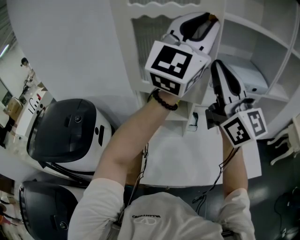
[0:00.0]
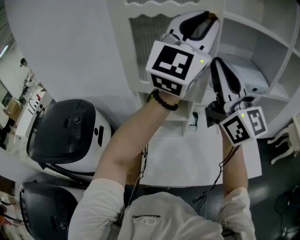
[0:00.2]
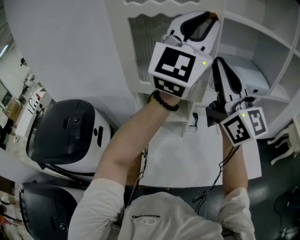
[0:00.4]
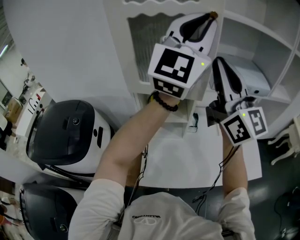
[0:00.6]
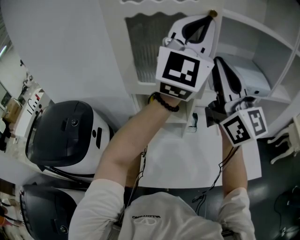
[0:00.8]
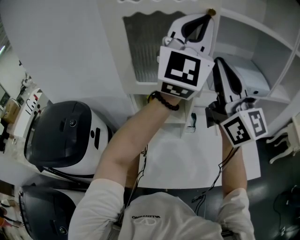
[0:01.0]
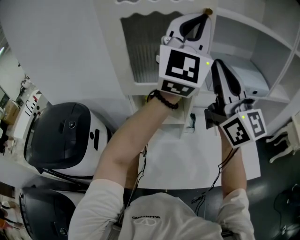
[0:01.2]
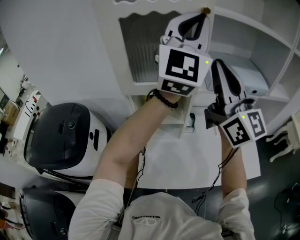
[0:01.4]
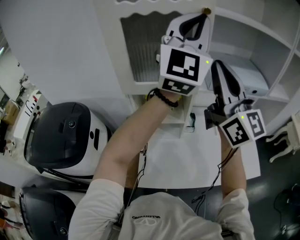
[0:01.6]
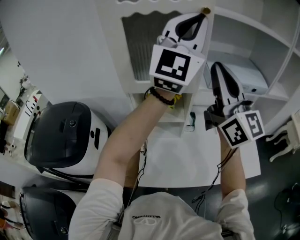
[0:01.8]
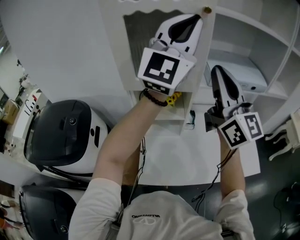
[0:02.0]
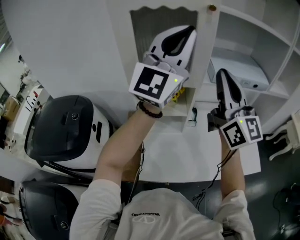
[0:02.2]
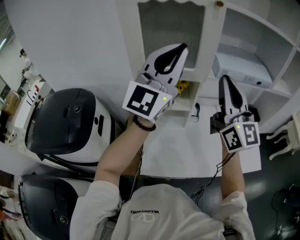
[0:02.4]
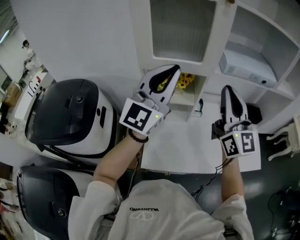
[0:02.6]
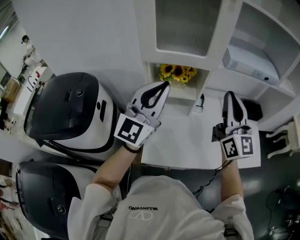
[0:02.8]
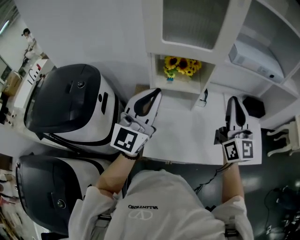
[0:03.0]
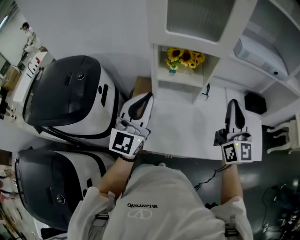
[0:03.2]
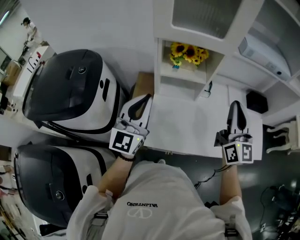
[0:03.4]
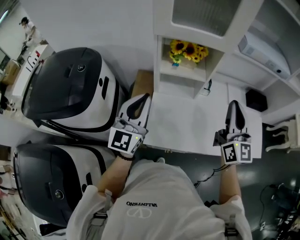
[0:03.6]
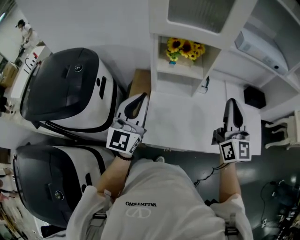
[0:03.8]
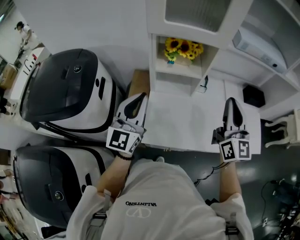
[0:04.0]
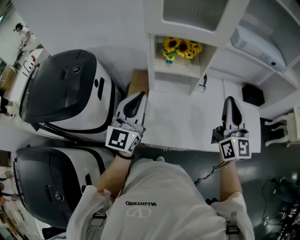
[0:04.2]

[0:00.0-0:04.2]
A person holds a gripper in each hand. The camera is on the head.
0.0 to 1.4 s: The left gripper travels forward by some 5 cm.
1.4 to 2.8 s: The right gripper moves downward, about 15 cm; the left gripper goes about 30 cm downward, backward and to the left, and rotates approximately 20 degrees.
2.8 to 4.2 s: The right gripper heads downward, covering some 10 cm. Meanwhile the left gripper moves downward, to the left and backward, about 15 cm.

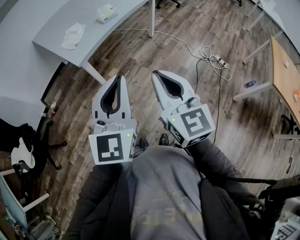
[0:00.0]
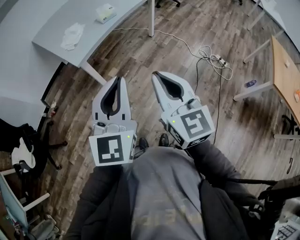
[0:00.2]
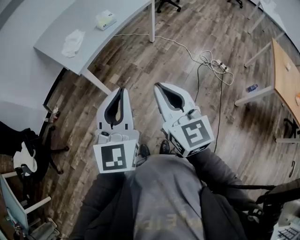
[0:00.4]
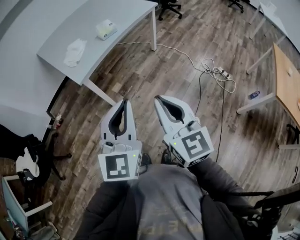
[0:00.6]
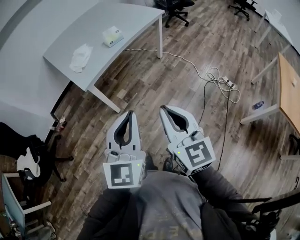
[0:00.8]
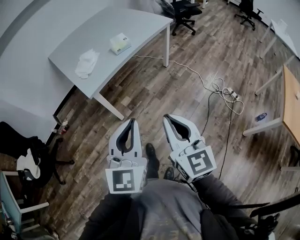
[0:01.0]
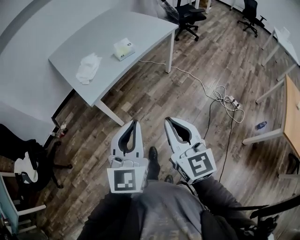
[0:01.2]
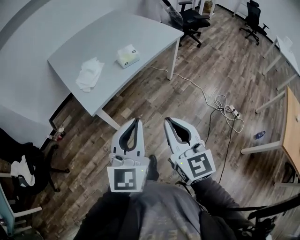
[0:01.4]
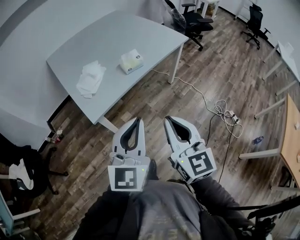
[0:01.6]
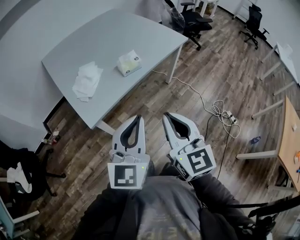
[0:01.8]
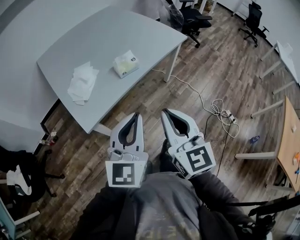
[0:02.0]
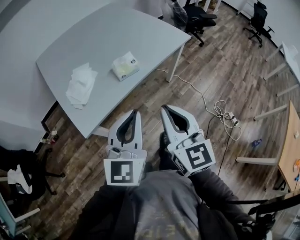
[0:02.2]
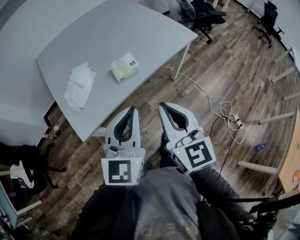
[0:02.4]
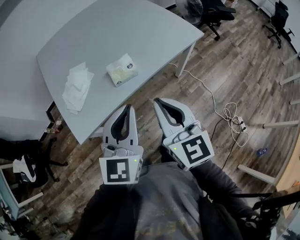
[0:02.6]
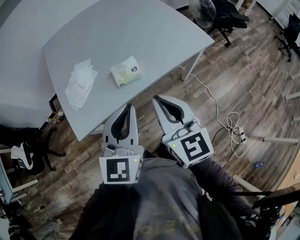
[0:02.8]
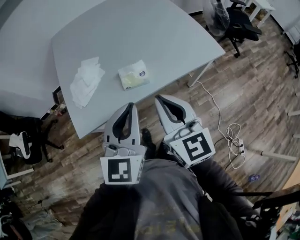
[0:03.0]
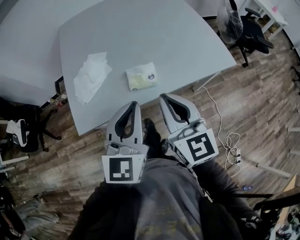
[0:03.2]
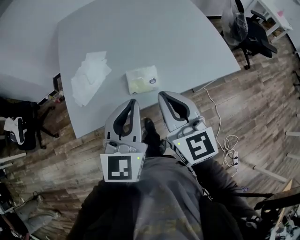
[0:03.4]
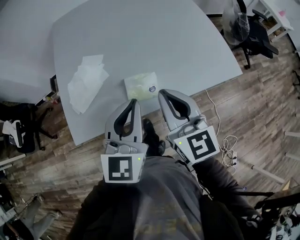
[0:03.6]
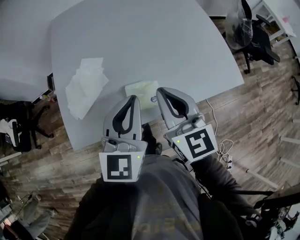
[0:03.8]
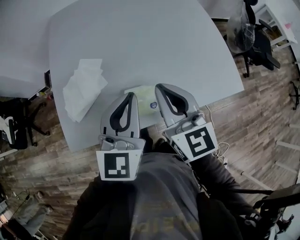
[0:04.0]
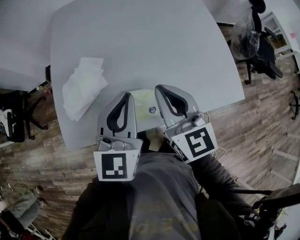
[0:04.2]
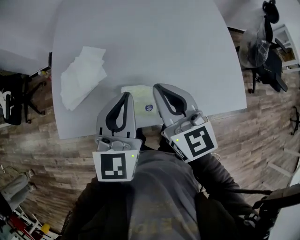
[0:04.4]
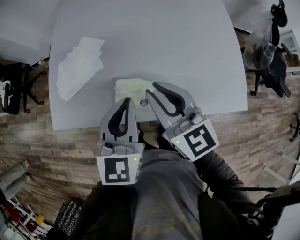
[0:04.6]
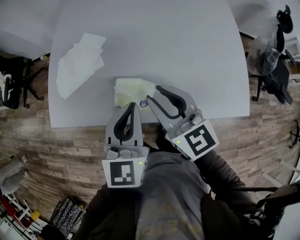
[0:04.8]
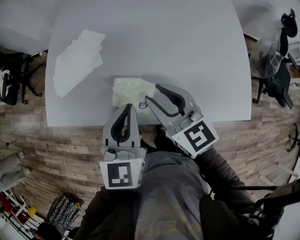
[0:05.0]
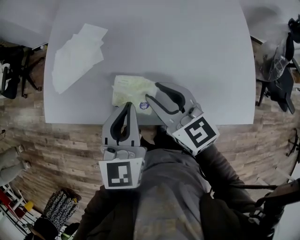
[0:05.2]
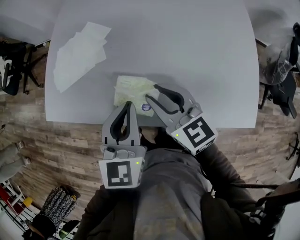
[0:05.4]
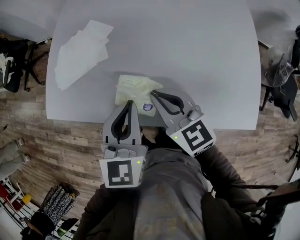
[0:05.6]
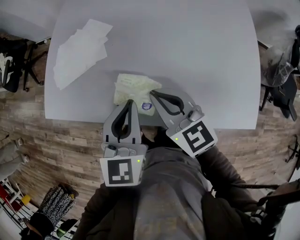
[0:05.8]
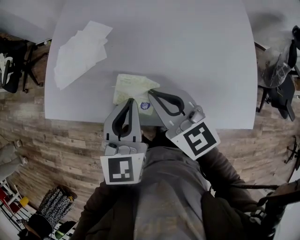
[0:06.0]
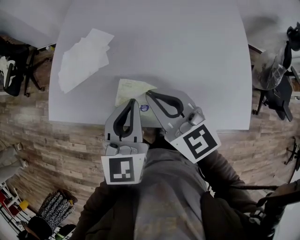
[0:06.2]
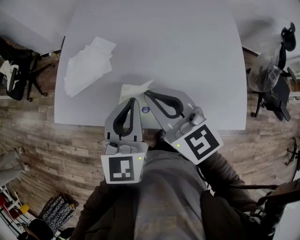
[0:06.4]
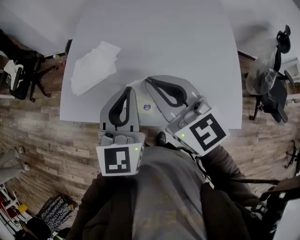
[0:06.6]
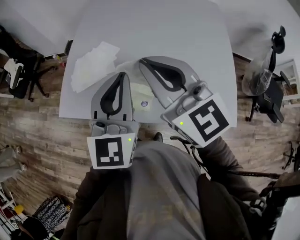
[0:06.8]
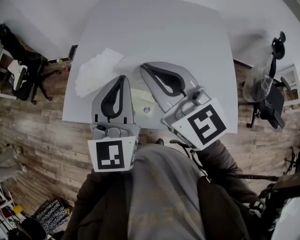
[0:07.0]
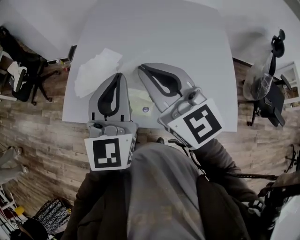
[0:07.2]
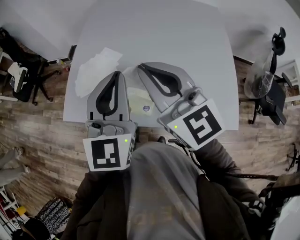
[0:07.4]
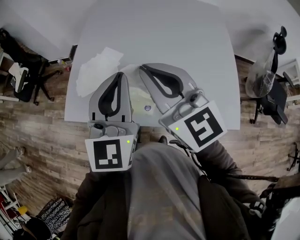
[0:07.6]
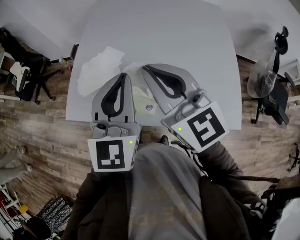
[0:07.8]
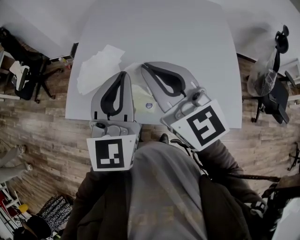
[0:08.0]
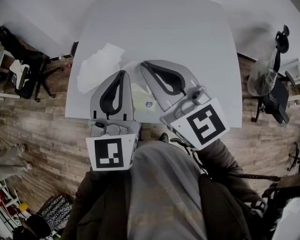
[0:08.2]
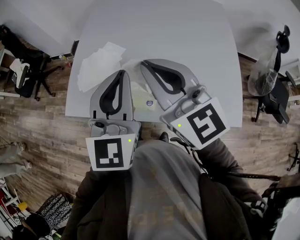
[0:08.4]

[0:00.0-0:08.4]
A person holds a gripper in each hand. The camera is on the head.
0.0 to 1.4 s: The two grippers go some 20 cm forward.
1.4 to 2.8 s: The grippers both shift forward by roughly 35 cm.
2.8 to 4.2 s: The grippers both shift forward by some 25 cm.
4.2 to 5.6 s: Both grippers travel together downward, approximately 15 cm. The right gripper swivels approximately 40 degrees, and opens and closes again; the left gripper turns by some 20 degrees.
5.6 to 7.0 s: Both grippers move upward, roughly 25 cm. The right gripper turns by approximately 20 degrees; the left gripper turns by approximately 20 degrees.
7.0 to 8.4 s: The grippers move only a little.

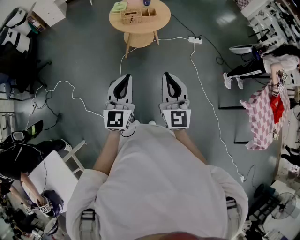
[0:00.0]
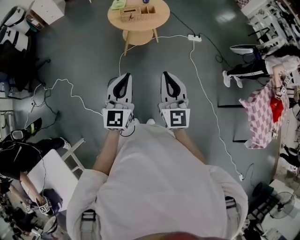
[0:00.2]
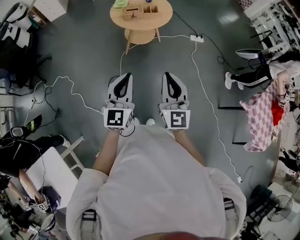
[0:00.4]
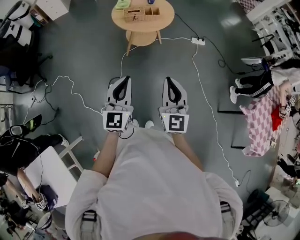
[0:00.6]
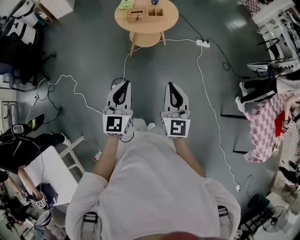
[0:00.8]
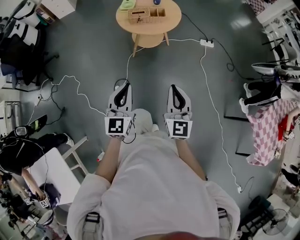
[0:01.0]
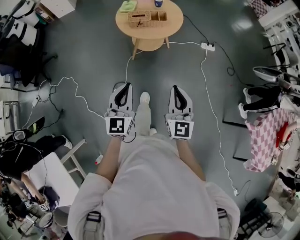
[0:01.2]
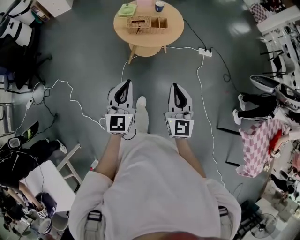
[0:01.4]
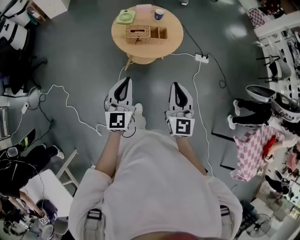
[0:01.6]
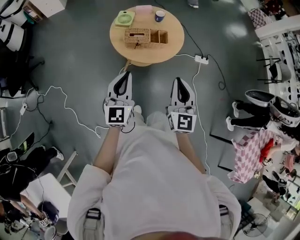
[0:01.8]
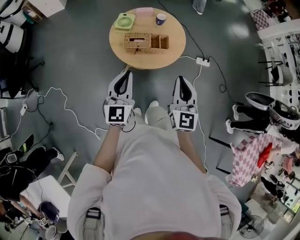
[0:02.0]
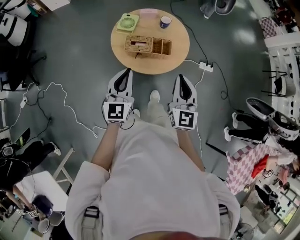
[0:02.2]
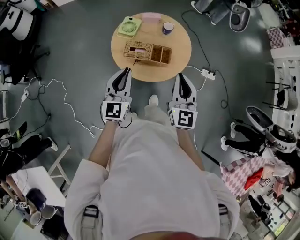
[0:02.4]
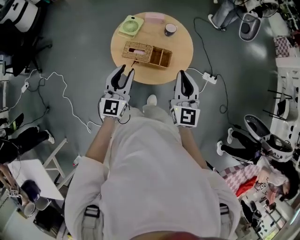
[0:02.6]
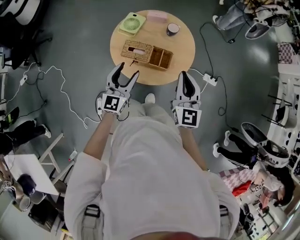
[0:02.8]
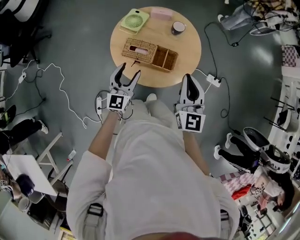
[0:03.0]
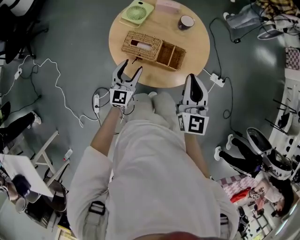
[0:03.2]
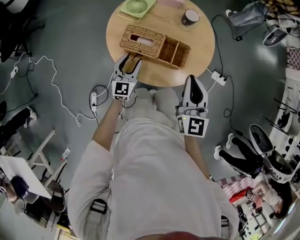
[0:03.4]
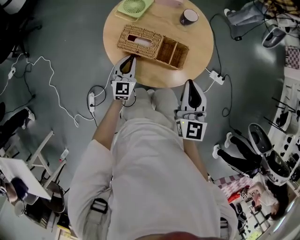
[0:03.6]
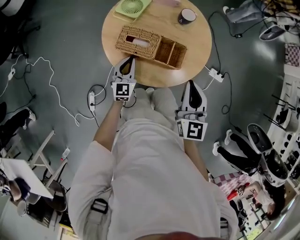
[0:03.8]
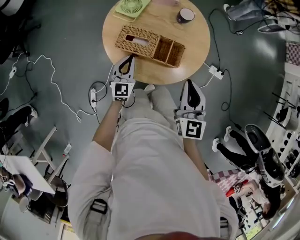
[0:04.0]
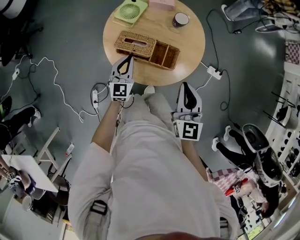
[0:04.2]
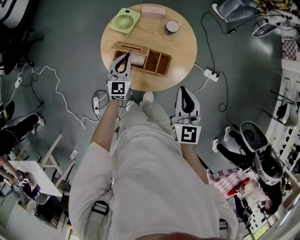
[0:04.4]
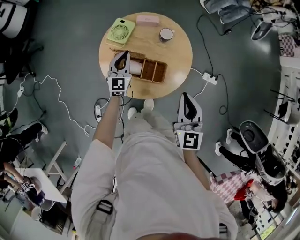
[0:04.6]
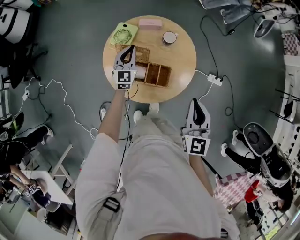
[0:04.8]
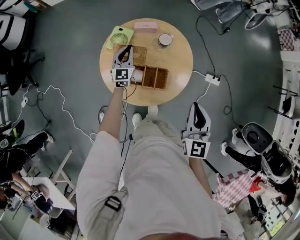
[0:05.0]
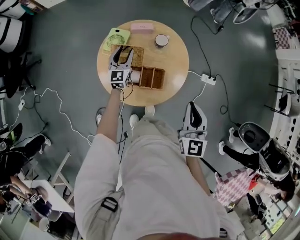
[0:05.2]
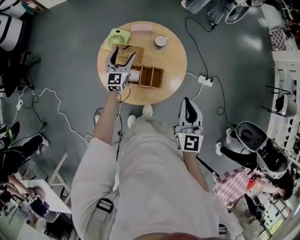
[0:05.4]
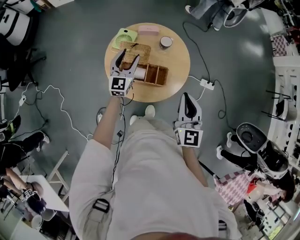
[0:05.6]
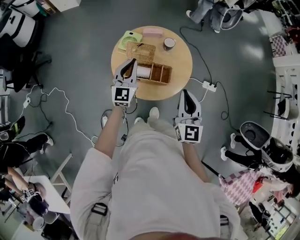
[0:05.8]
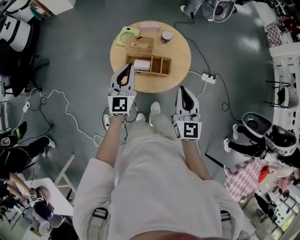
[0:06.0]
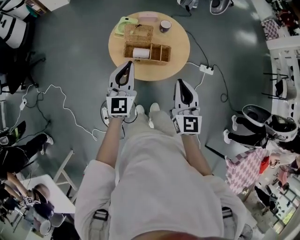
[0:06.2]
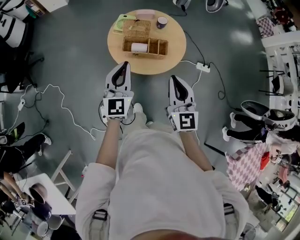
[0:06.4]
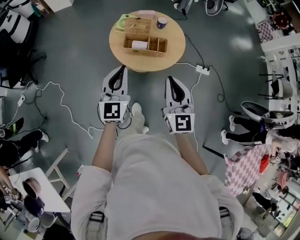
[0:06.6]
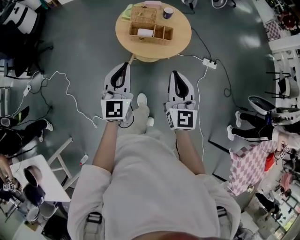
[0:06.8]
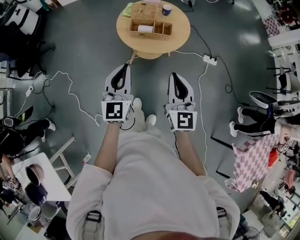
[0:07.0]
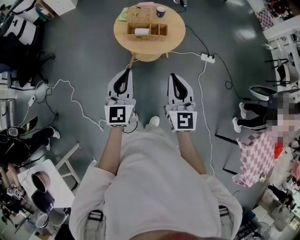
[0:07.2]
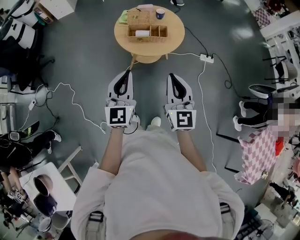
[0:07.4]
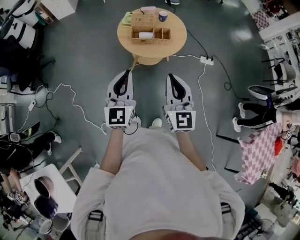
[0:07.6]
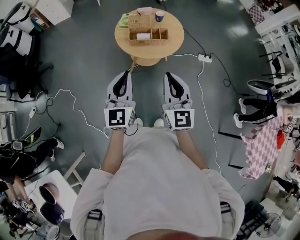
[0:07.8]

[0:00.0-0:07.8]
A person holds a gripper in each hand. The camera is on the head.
0.0 to 1.6 s: The two grippers go about 30 cm forward.
1.6 to 3.2 s: Both grippers move forward and downward, roughly 40 cm. The left gripper opens.
3.2 to 4.6 s: The right gripper travels upward by some 5 cm. Meanwhile the left gripper is displaced forward and upward by approximately 15 cm, and closes up.
4.6 to 6.2 s: The left gripper is displaced backward and upward by roughly 30 cm, and opens, then closes once more, while the right gripper travels backward, to the left and upward by roughly 20 cm.
6.2 to 7.8 s: The left gripper travels backward by roughly 30 cm, while the right gripper heads backward and to the left, covering approximately 25 cm.

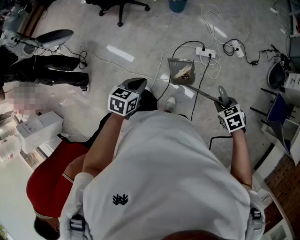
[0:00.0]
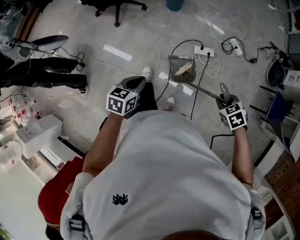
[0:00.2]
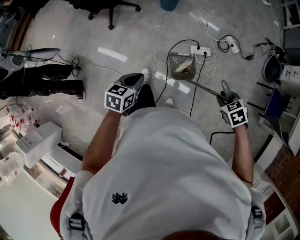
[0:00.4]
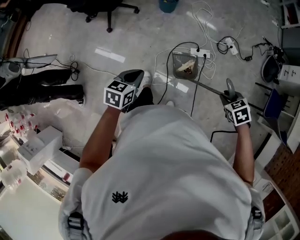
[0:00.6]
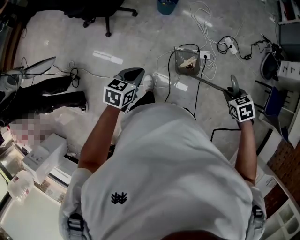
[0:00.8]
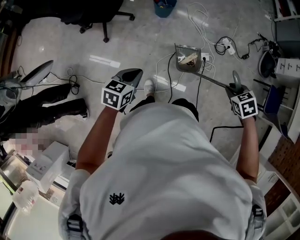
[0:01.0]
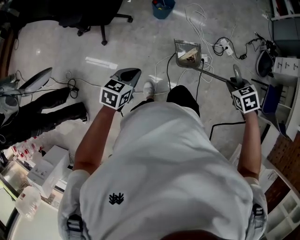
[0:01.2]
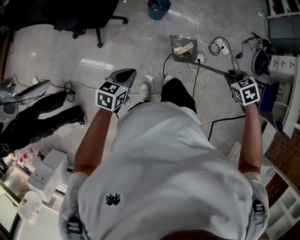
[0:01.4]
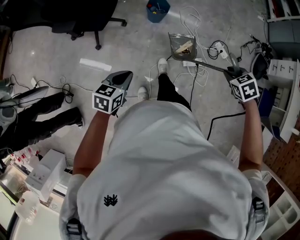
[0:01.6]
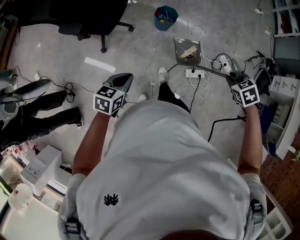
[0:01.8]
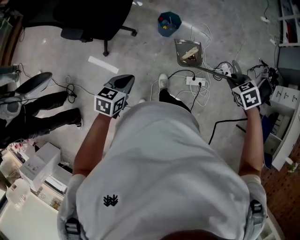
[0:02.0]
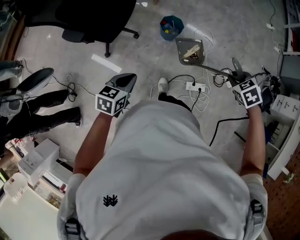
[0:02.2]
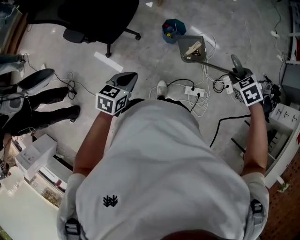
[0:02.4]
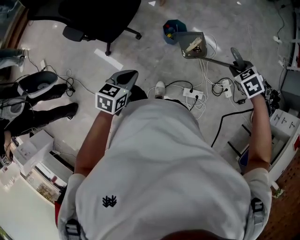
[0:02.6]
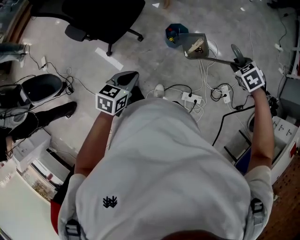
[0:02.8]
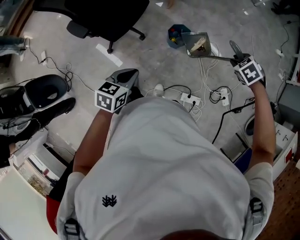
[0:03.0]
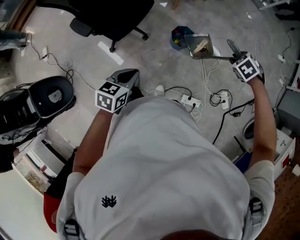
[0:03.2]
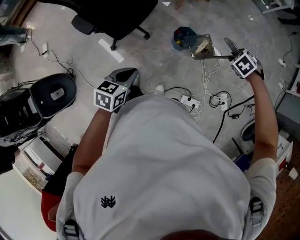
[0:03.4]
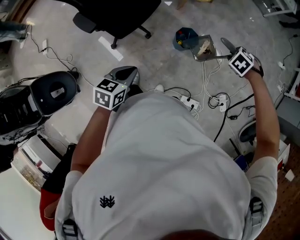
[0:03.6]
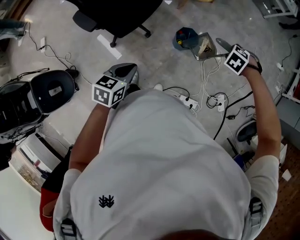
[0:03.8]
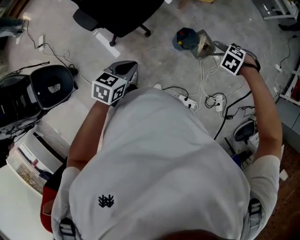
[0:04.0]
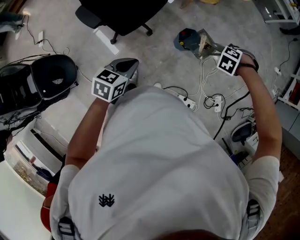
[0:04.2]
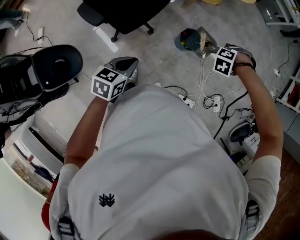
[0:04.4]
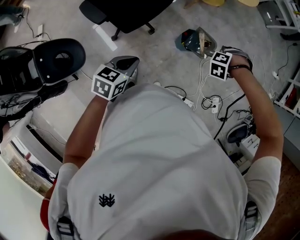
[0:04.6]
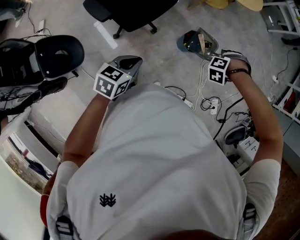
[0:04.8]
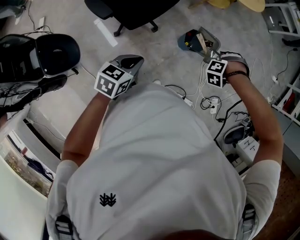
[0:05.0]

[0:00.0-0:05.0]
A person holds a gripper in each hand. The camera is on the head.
0.0 to 1.6 s: The left gripper changes place by some 35 cm.
1.6 to 3.4 s: The left gripper changes place by some 25 cm, and changes its angle by about 20 degrees.
3.4 to 5.0 s: The left gripper ends up approximately 10 cm from where it was.
